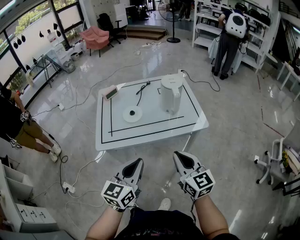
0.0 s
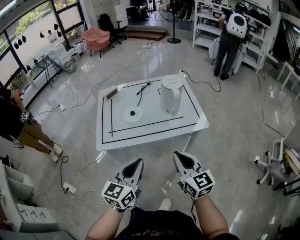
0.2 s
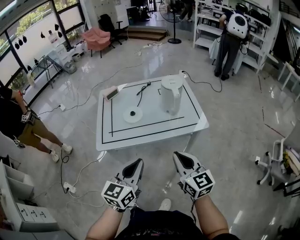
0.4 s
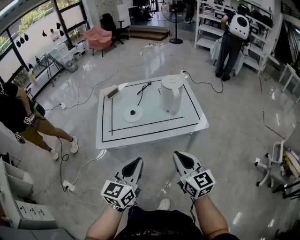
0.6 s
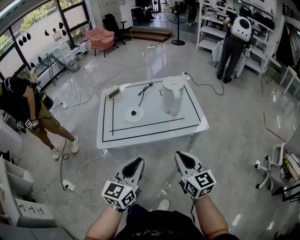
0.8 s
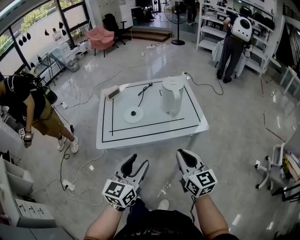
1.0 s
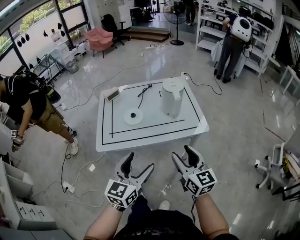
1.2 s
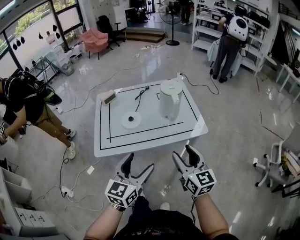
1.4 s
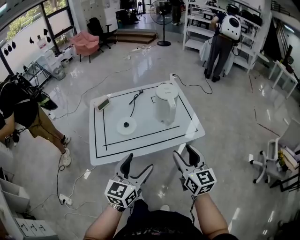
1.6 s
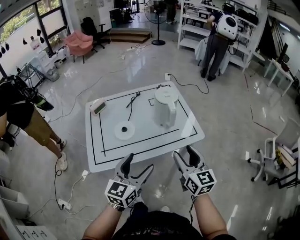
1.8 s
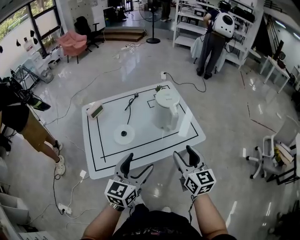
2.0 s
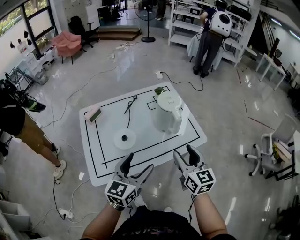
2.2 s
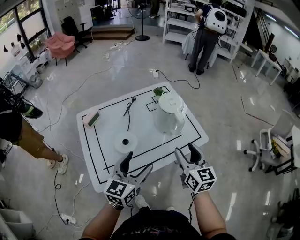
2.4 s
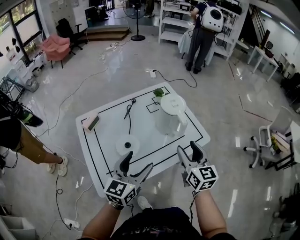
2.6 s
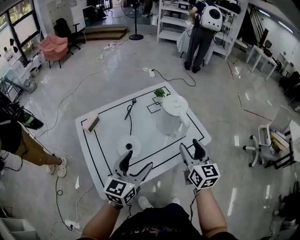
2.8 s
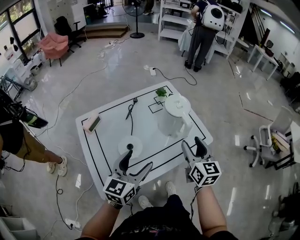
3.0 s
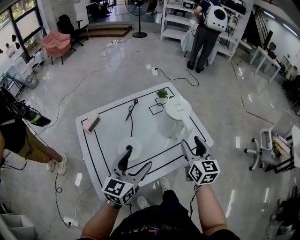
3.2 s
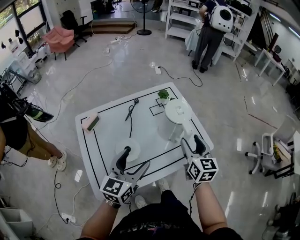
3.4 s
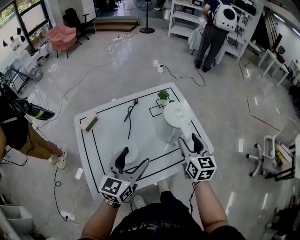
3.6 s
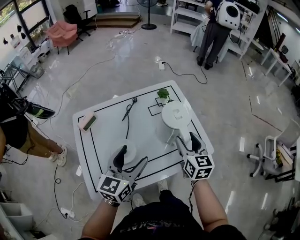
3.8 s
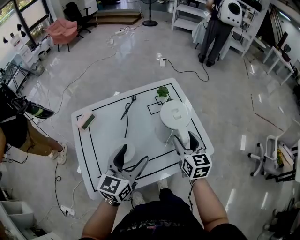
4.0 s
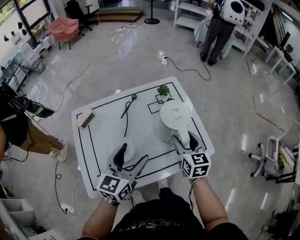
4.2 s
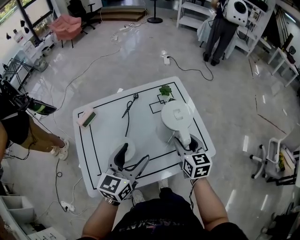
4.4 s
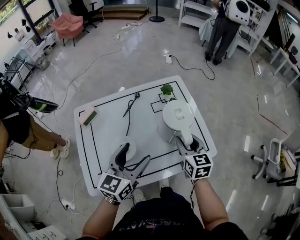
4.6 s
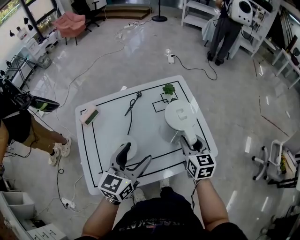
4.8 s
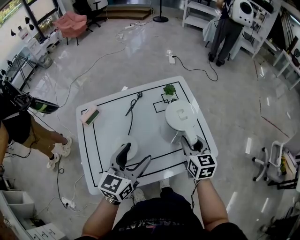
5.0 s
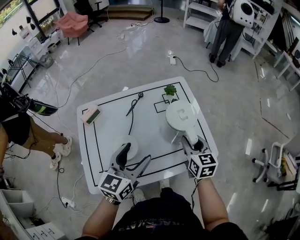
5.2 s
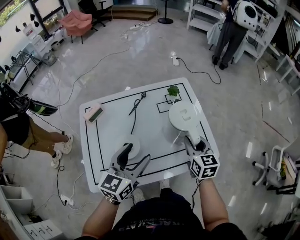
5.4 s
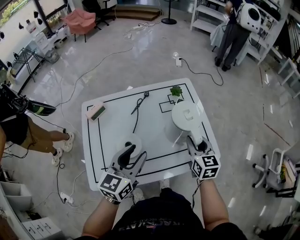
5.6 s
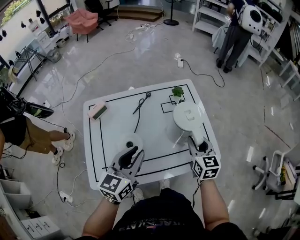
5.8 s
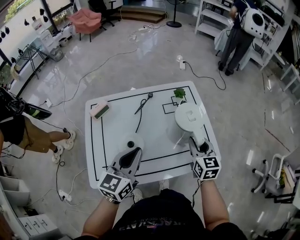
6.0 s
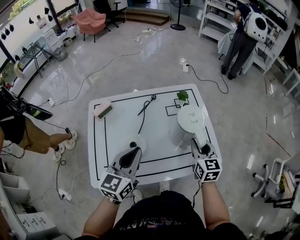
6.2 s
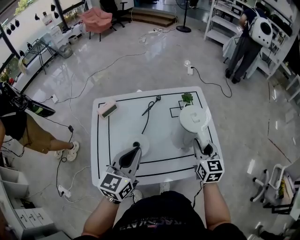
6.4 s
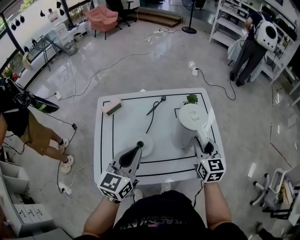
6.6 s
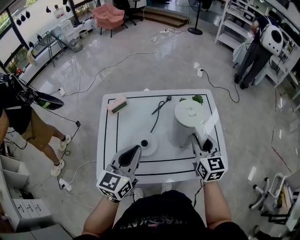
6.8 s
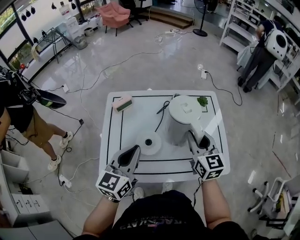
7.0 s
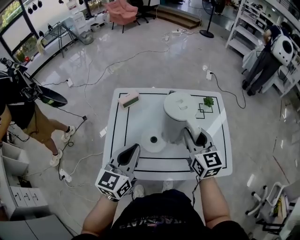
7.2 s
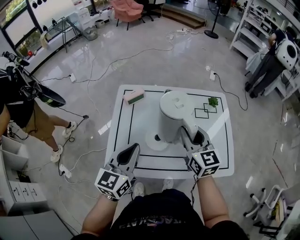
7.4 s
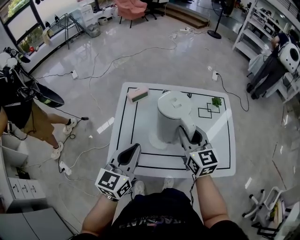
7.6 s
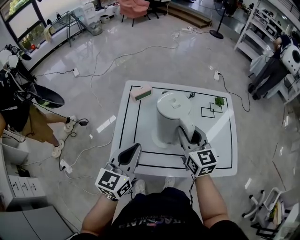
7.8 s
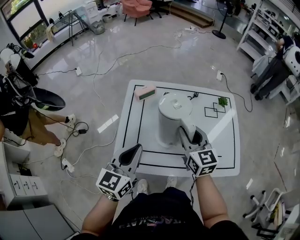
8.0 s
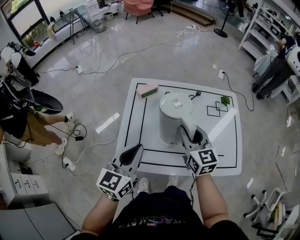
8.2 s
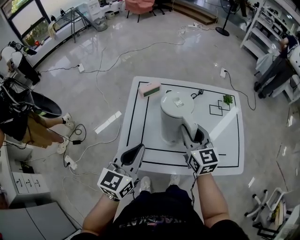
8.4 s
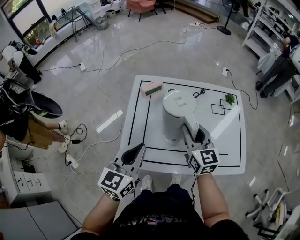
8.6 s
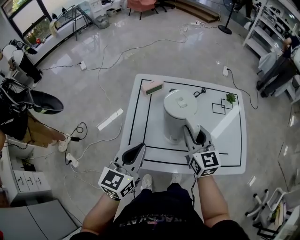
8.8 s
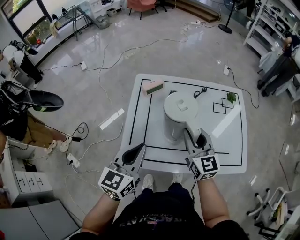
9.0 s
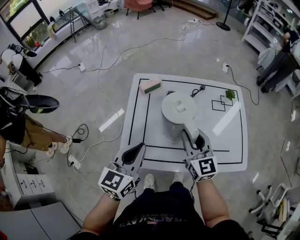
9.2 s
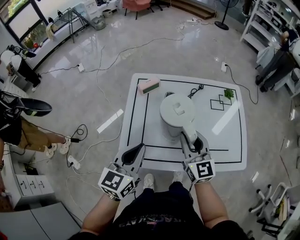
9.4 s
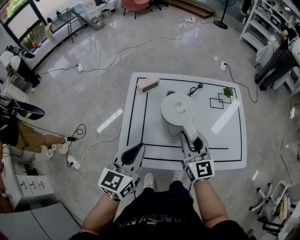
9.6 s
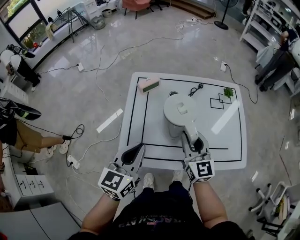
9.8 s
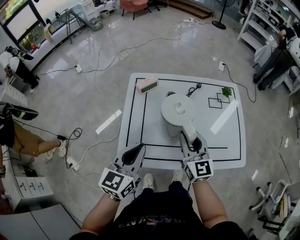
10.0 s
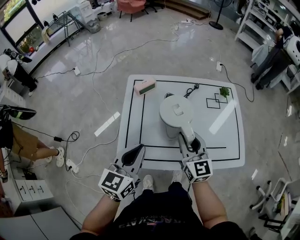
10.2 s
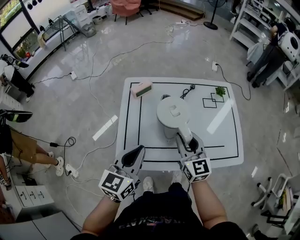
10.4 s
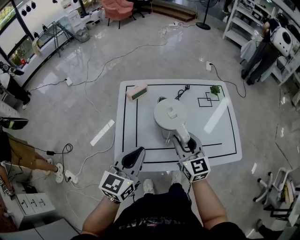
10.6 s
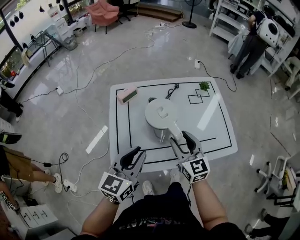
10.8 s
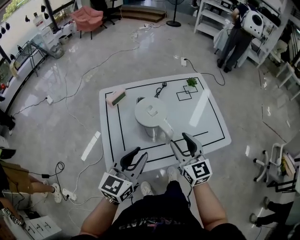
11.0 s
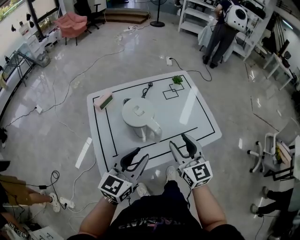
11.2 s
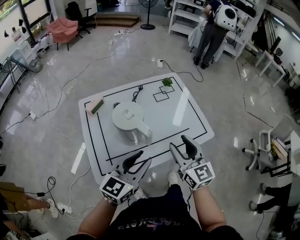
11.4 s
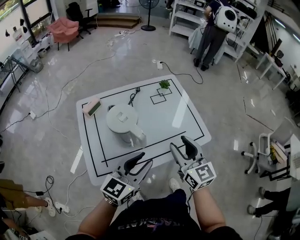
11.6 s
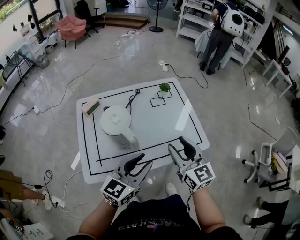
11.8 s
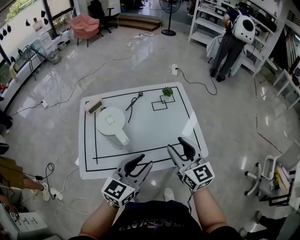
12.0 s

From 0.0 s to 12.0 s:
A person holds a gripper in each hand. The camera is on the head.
From 0.0 s to 1.6 s: Both grippers travel together forward, some 10 cm. The left gripper opens its fingers. The right gripper opens its fingers.
From 1.6 s to 3.0 s: Both grippers travel together forward and to the left, approximately 20 cm. The right gripper changes its angle by some 20 degrees.
From 3.0 s to 4.4 s: The right gripper travels forward and downward by some 15 cm; the left gripper travels forward by approximately 10 cm.
From 4.4 s to 6.0 s: The left gripper closes its fingers, while the right gripper closes up.
From 6.0 s to 7.6 s: The left gripper shifts roughly 15 cm to the left. The right gripper goes approximately 25 cm to the left, and swivels about 30 degrees.
From 7.6 s to 9.0 s: The left gripper changes place by approximately 5 cm, while the right gripper ends up roughly 5 cm from where it was.
From 9.0 s to 10.4 s: There are only small adjustments of the grippers.
From 10.4 s to 12.0 s: Both grippers move to the right, about 25 cm. The left gripper rotates approximately 20 degrees, and opens up.

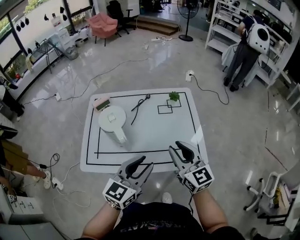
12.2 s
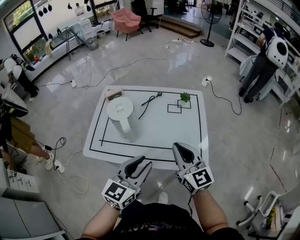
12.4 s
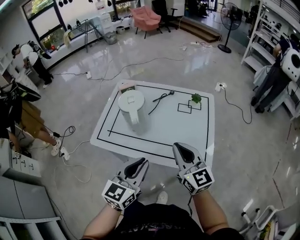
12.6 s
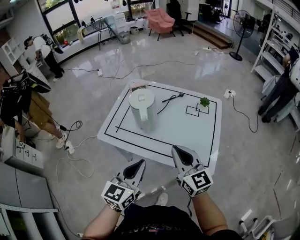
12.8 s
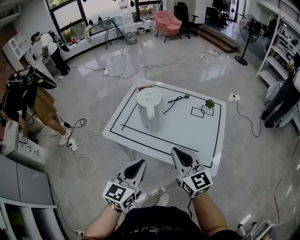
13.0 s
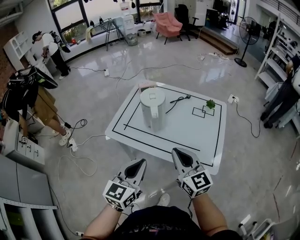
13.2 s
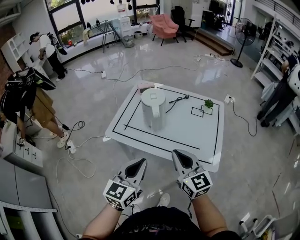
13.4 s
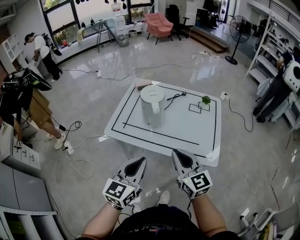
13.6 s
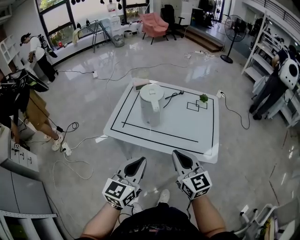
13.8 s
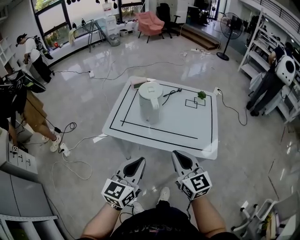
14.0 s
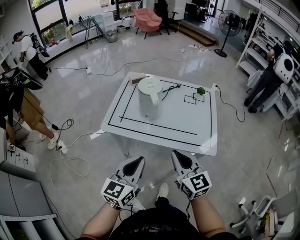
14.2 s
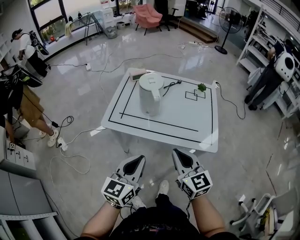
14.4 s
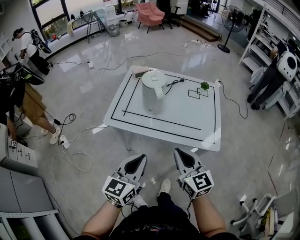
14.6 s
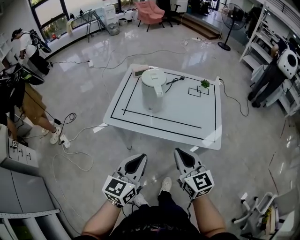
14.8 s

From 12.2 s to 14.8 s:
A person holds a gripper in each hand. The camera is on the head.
From 12.2 s to 13.4 s: The right gripper moves some 15 cm, rotates approximately 20 degrees, and closes its fingers, while the left gripper shifts by about 15 cm, swivels roughly 30 degrees, and closes its fingers.
From 13.4 s to 14.8 s: The left gripper moves about 5 cm; the right gripper shifts approximately 5 cm backward.

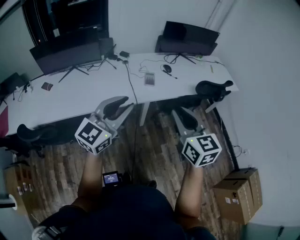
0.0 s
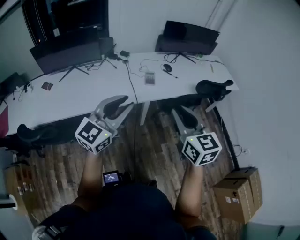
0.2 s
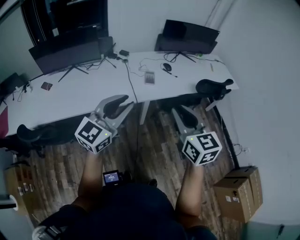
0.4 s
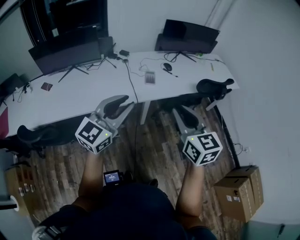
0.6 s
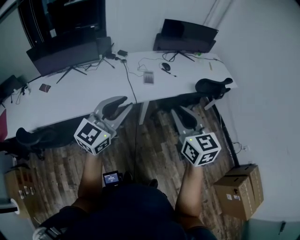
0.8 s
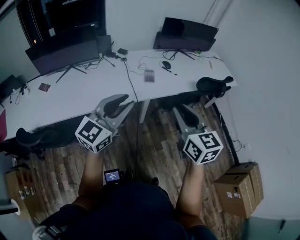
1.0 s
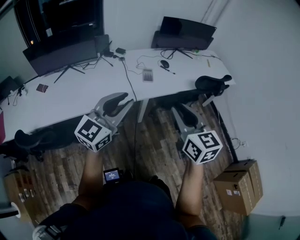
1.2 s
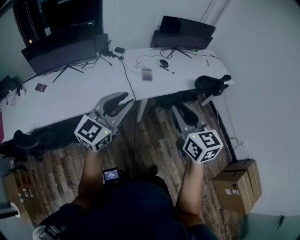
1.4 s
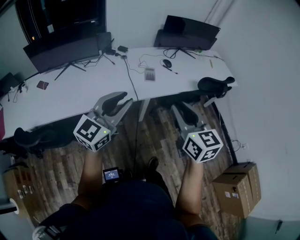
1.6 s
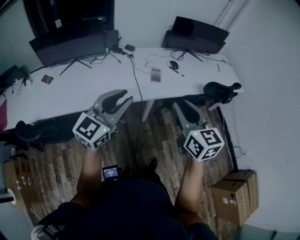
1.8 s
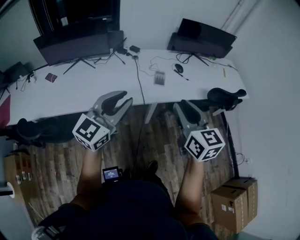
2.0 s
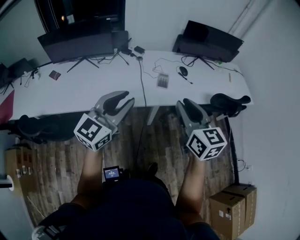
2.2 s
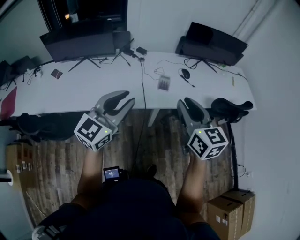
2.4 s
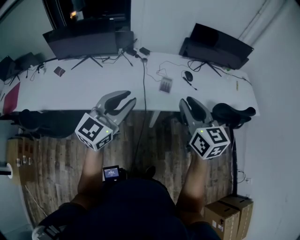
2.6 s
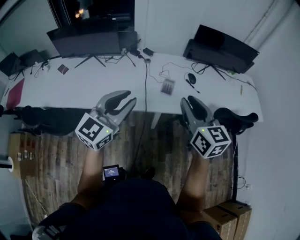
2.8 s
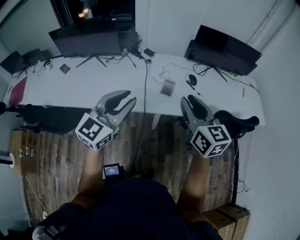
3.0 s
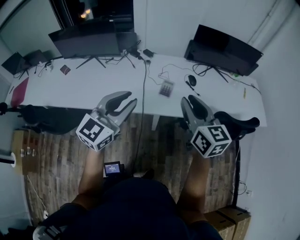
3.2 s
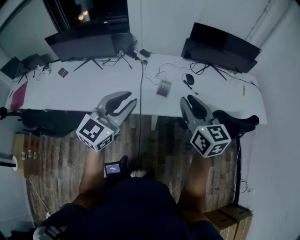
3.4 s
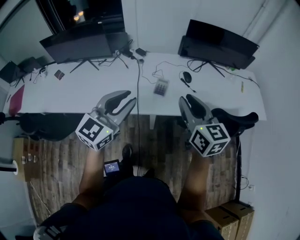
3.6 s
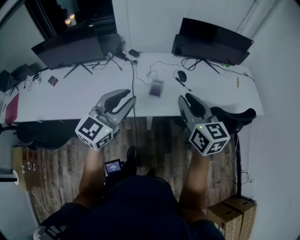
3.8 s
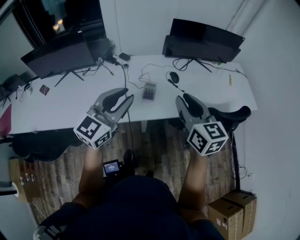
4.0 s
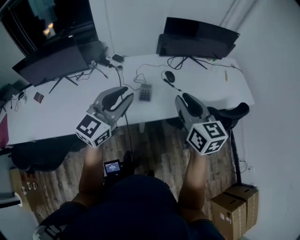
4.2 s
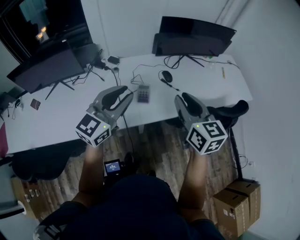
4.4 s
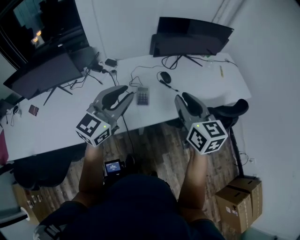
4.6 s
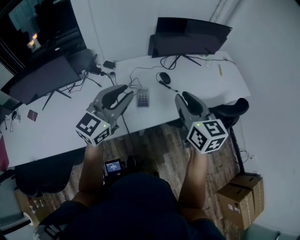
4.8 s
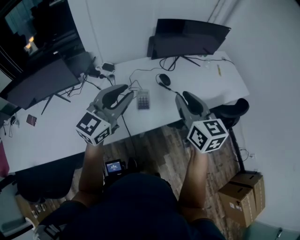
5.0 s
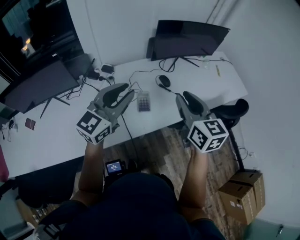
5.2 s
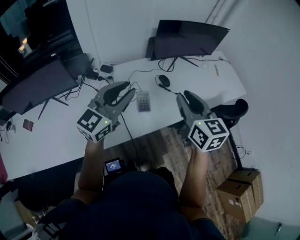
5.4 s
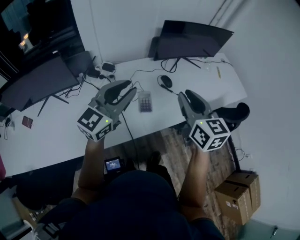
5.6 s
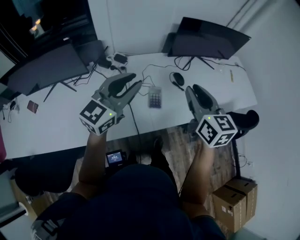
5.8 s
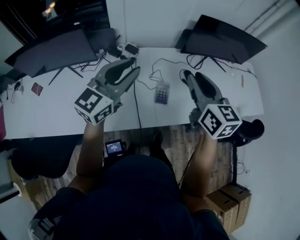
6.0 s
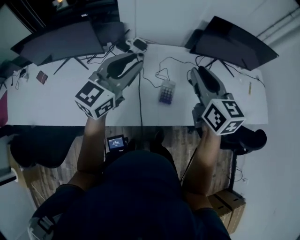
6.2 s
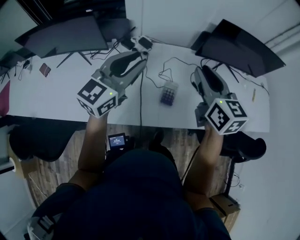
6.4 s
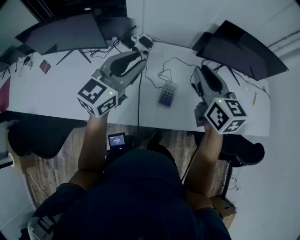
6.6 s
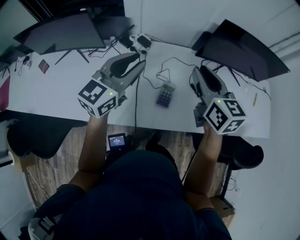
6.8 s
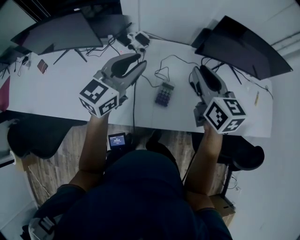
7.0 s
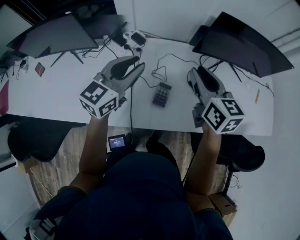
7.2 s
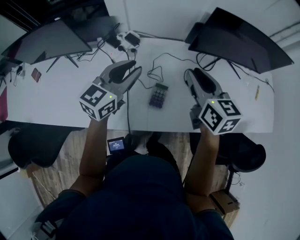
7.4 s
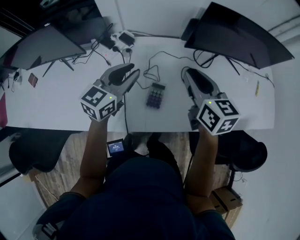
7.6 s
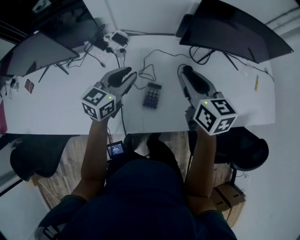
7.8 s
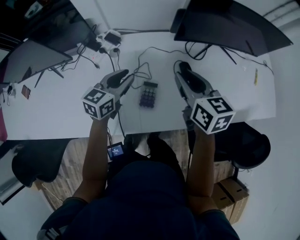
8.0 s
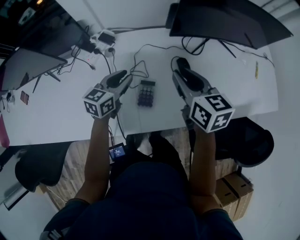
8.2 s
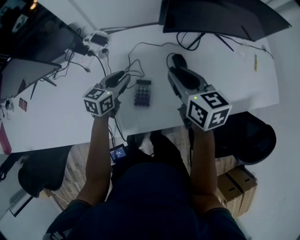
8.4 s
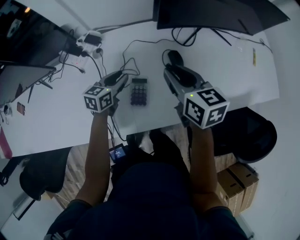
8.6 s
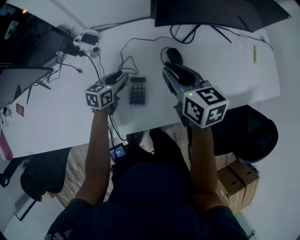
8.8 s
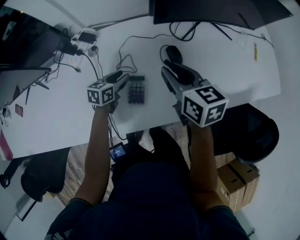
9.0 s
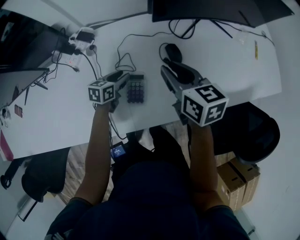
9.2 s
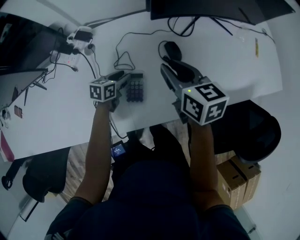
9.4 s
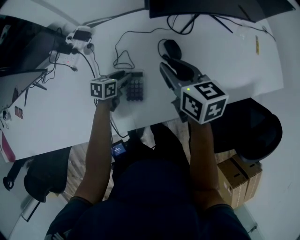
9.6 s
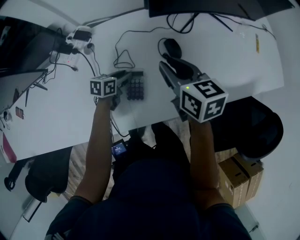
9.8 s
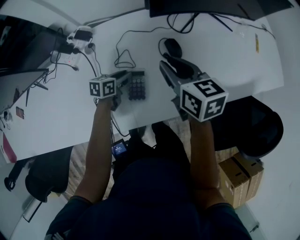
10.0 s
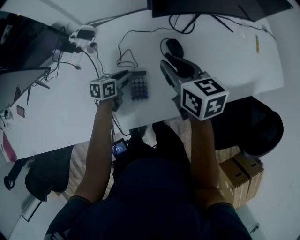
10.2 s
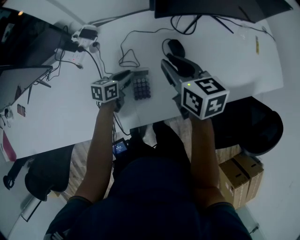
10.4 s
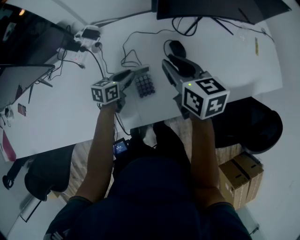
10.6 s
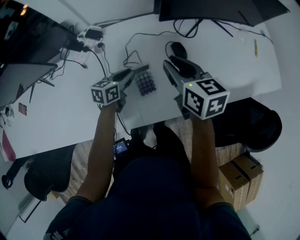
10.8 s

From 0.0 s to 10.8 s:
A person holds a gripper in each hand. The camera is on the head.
From 0.0 s to 1.6 s: There are only small adjustments of the grippers.
From 1.6 s to 3.0 s: The right gripper heads forward, covering some 20 cm, while the left gripper goes about 15 cm forward and to the right, and swivels roughly 20 degrees.
From 3.0 s to 4.6 s: The left gripper moves forward, some 20 cm. The right gripper shifts approximately 10 cm forward.
From 4.6 s to 6.2 s: The left gripper is displaced to the left and forward by roughly 15 cm, while the right gripper moves forward and to the left, roughly 20 cm.
From 6.2 s to 7.8 s: The grippers both shift downward, forward and to the right by roughly 20 cm. The left gripper swivels about 20 degrees.
From 7.8 s to 9.2 s: The left gripper goes approximately 25 cm downward, and changes its angle by roughly 30 degrees. Meanwhile the right gripper shifts about 10 cm downward.
From 9.2 s to 10.8 s: The left gripper goes some 5 cm upward, and closes up.
